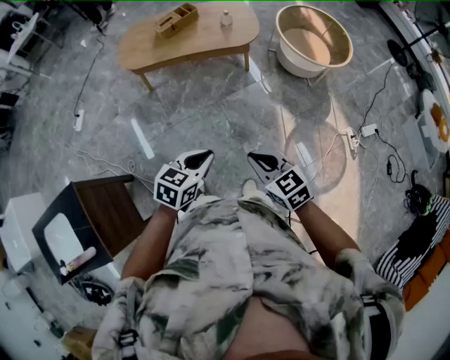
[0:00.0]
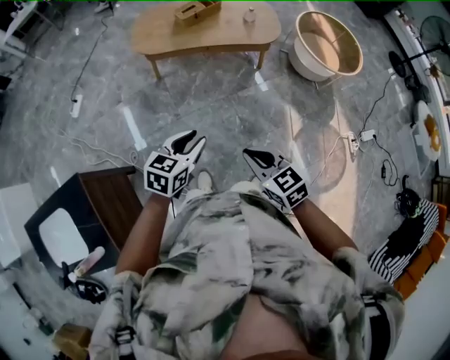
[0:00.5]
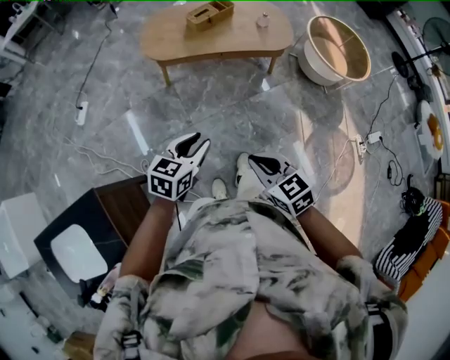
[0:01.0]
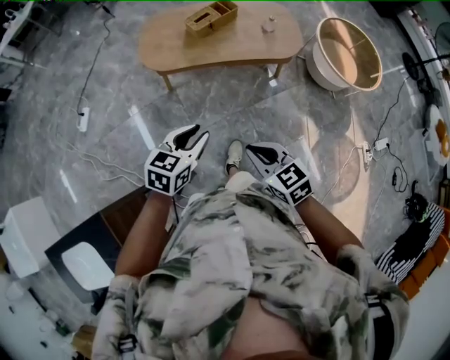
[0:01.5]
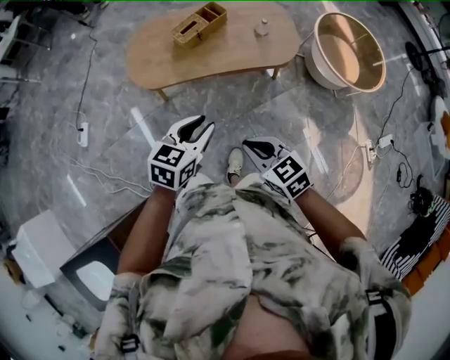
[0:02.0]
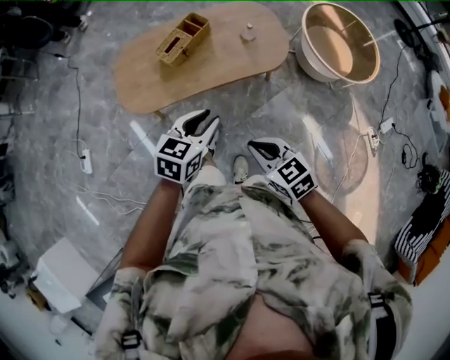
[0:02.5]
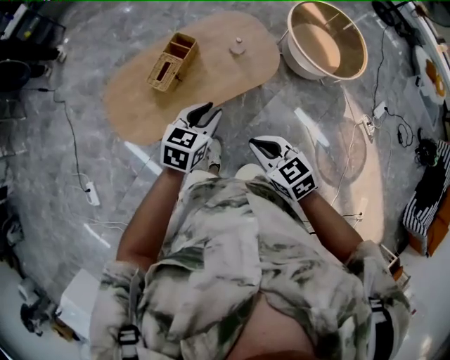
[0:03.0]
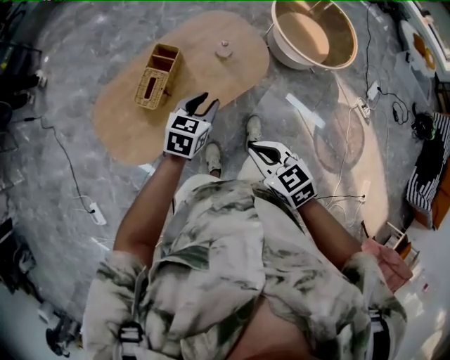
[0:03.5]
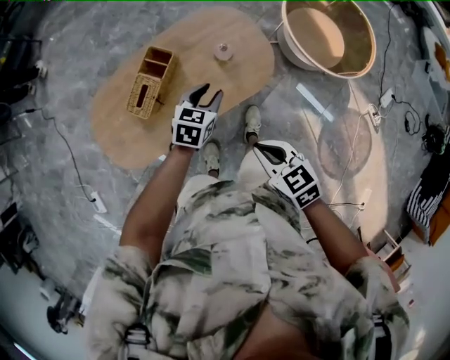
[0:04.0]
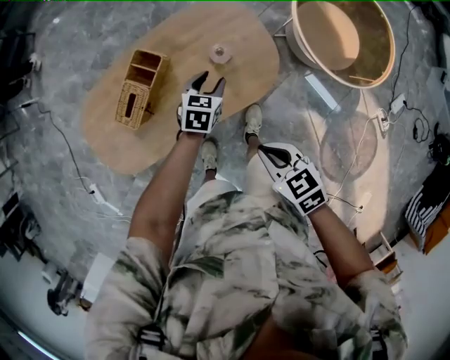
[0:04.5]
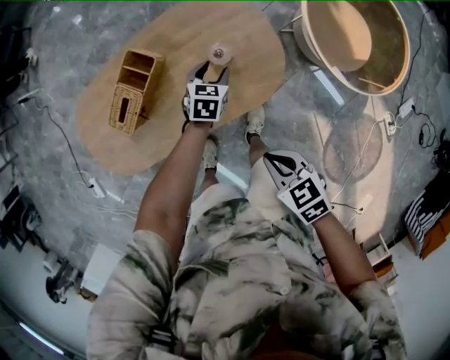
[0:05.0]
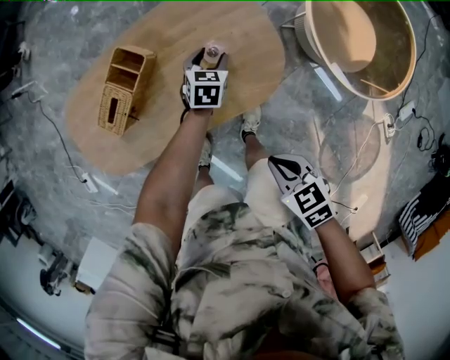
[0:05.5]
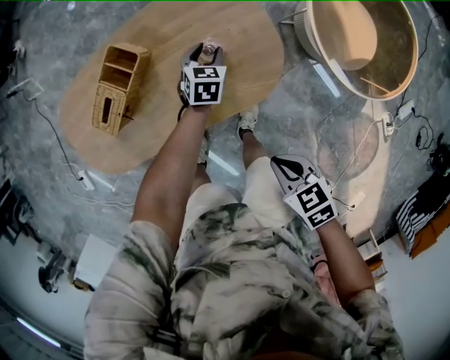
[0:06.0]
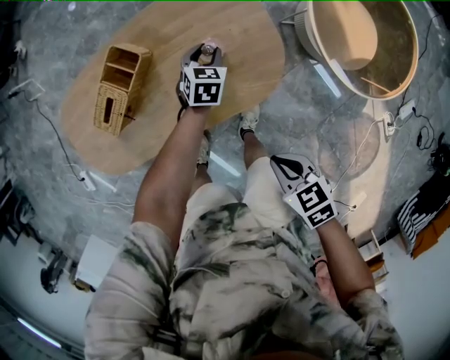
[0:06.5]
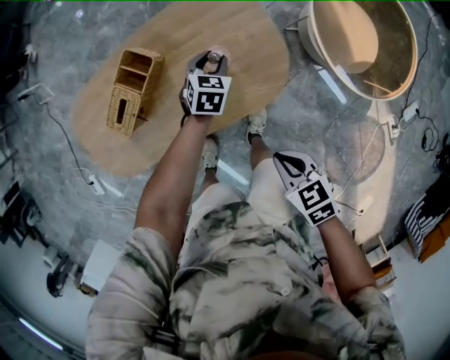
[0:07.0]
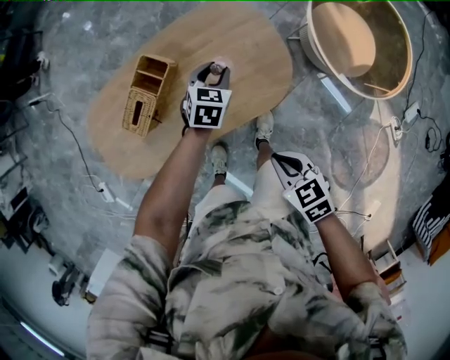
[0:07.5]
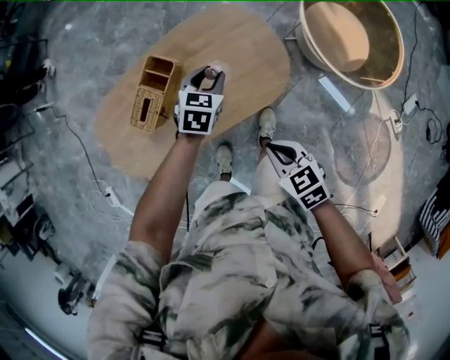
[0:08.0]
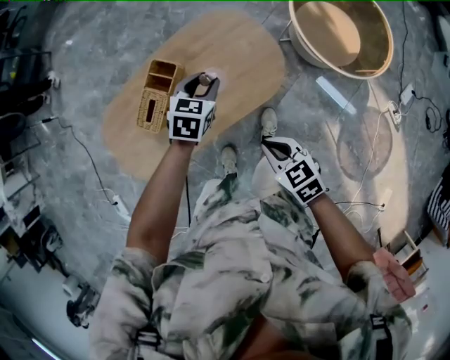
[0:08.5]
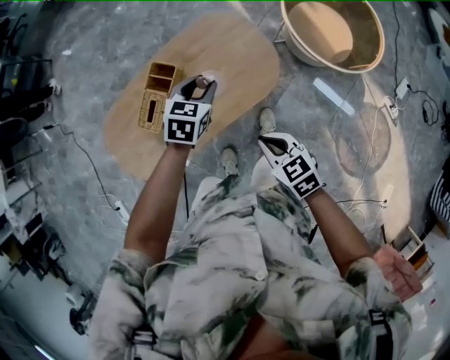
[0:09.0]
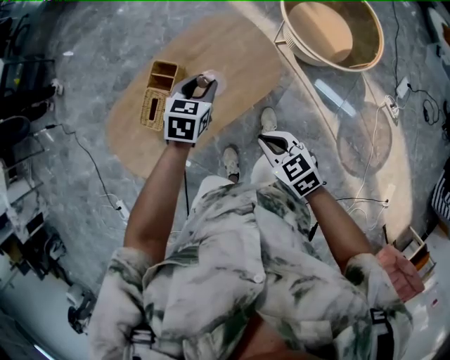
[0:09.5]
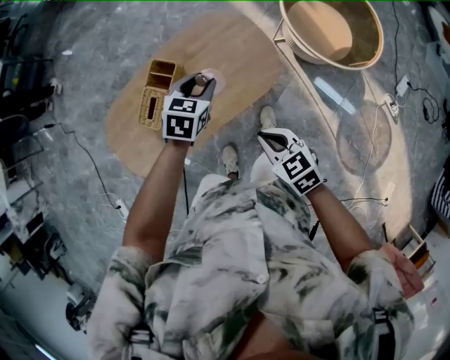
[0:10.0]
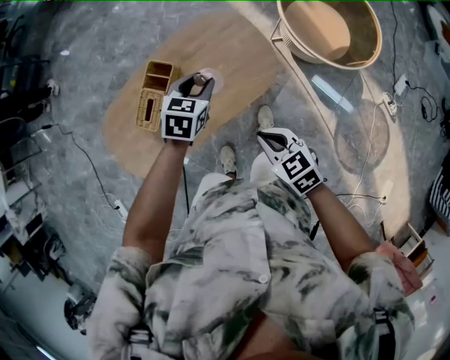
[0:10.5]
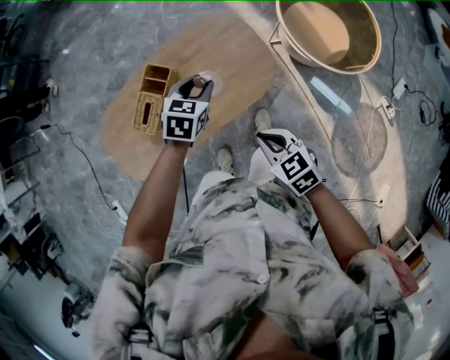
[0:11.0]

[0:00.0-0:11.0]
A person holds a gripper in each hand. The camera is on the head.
0:00.0 to 0:02.0: The two grippers travel together, forward and to the left, about 50 cm. The left gripper opens its fingers.
0:02.0 to 0:03.5: The right gripper moves roughly 25 cm, and rotates roughly 30 degrees. The left gripper changes place by some 40 cm, and changes its angle by roughly 20 degrees.
0:03.5 to 0:05.5: The left gripper ends up about 50 cm from where it was, changes its angle by about 30 degrees, and opens; the right gripper changes place by roughly 35 cm, and swivels approximately 20 degrees.
0:05.5 to 0:07.5: The left gripper travels upward by some 10 cm. Meanwhile the right gripper moves about 5 cm.
0:07.5 to 0:09.0: The left gripper heads upward and backward, covering roughly 20 cm, while the right gripper is displaced upward, to the left and backward by about 10 cm.
0:09.0 to 0:11.0: The grippers make only small movements.

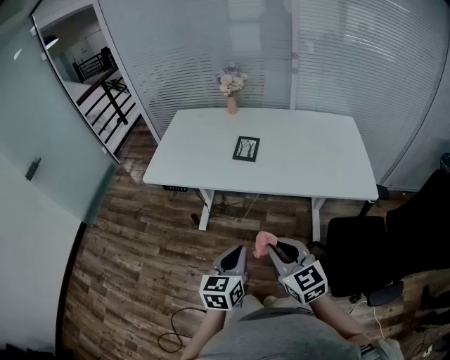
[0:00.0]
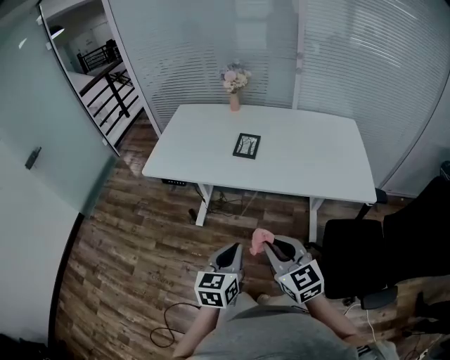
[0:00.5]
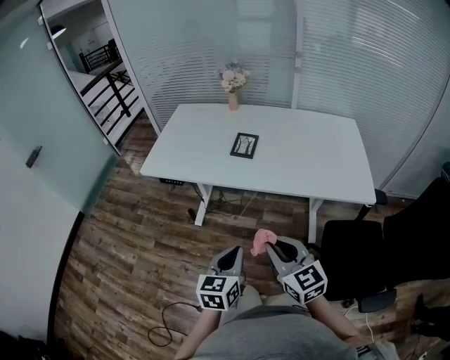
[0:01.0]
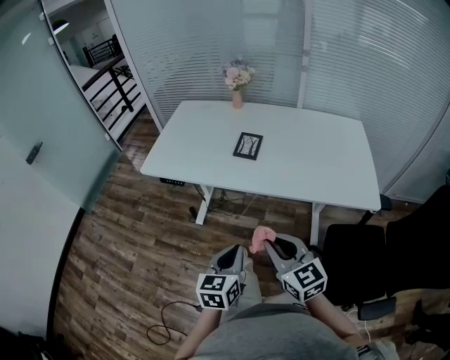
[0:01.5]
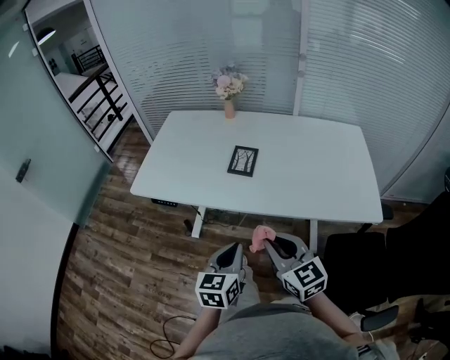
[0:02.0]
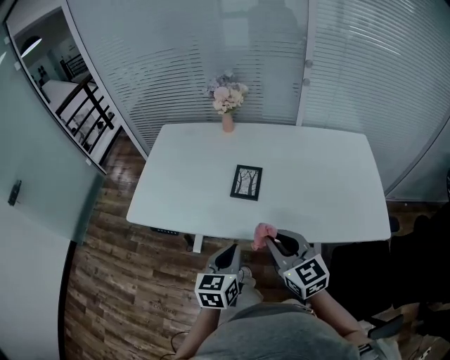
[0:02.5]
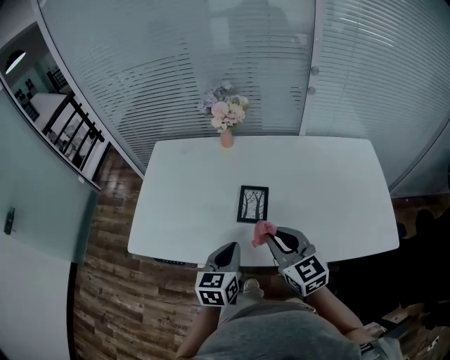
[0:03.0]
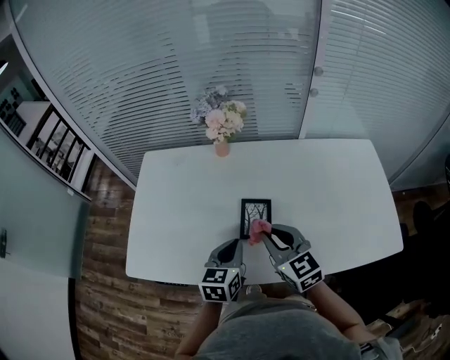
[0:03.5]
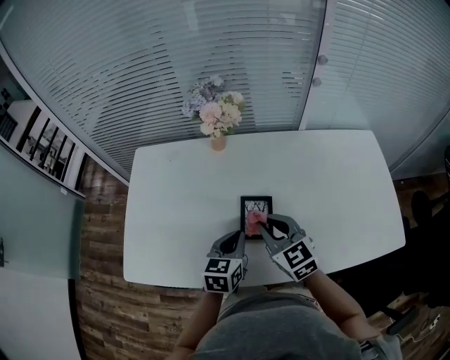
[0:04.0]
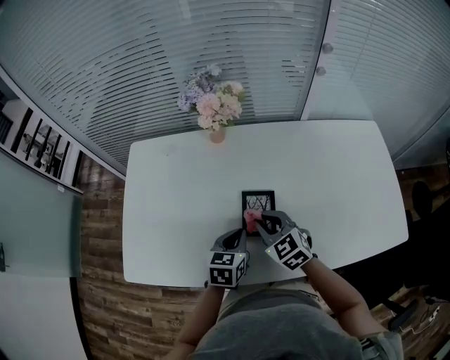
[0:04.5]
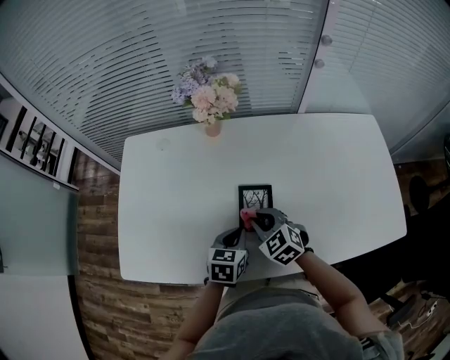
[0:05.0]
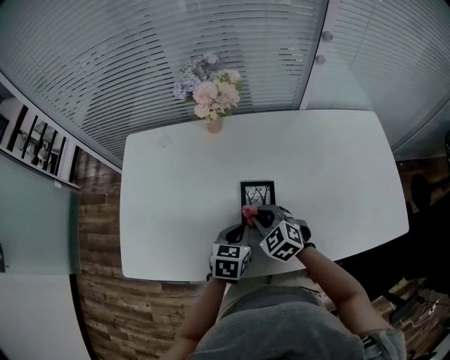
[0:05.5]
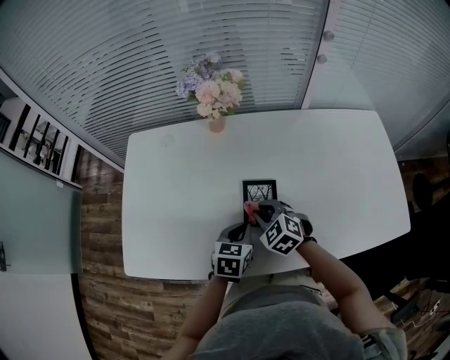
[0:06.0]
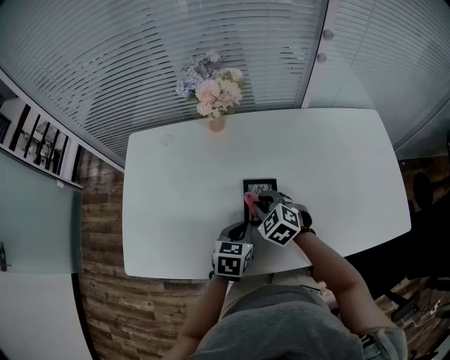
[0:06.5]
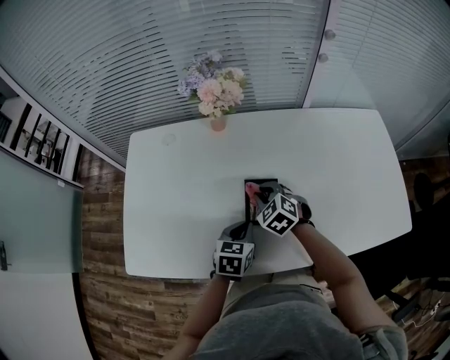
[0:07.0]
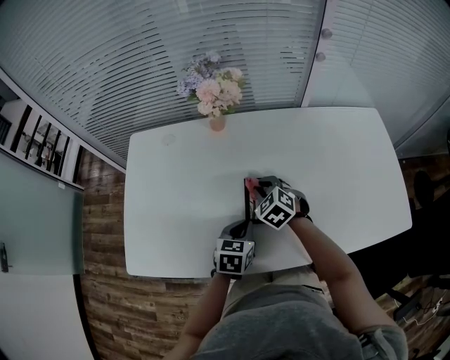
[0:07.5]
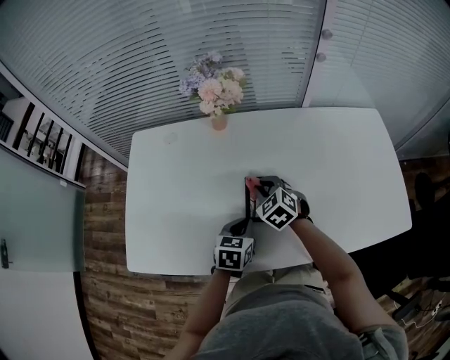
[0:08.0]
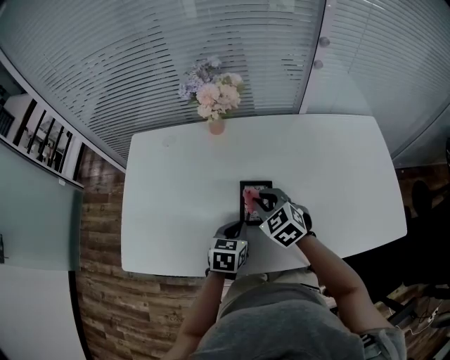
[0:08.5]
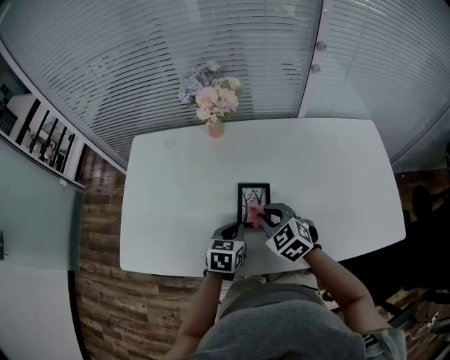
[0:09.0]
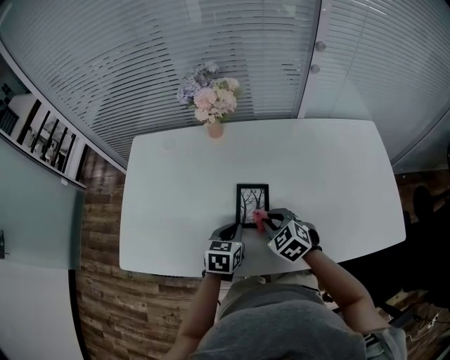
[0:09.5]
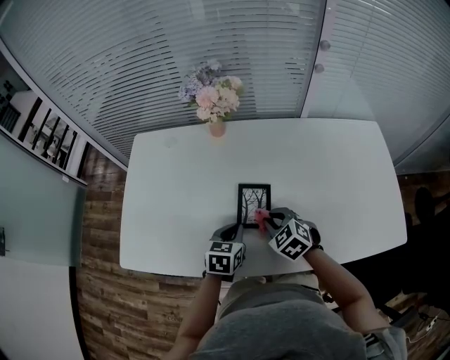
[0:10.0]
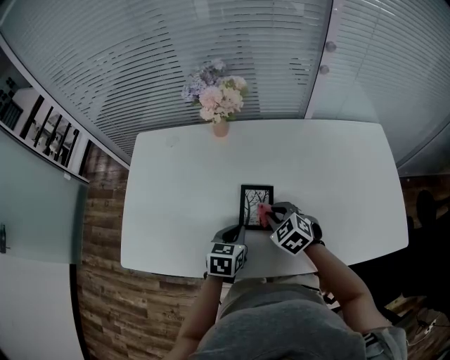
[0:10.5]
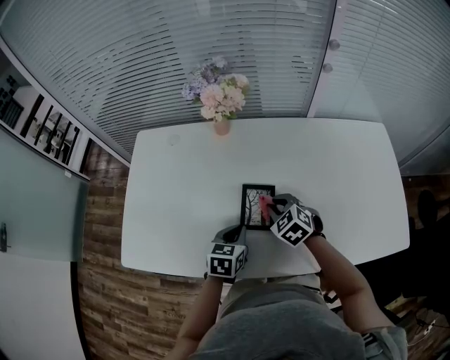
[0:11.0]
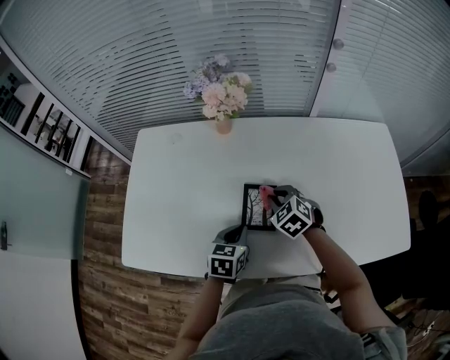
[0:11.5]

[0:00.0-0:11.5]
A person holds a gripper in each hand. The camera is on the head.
0:00.0 to 0:02.0: Both grippers travel together forward, approximately 10 cm.
0:02.0 to 0:04.0: The grippers both shift forward by some 35 cm.
0:04.0 to 0:06.0: The left gripper goes some 5 cm downward. The right gripper travels downward by roughly 15 cm, and turns by approximately 30 degrees.
0:06.0 to 0:07.5: The right gripper shifts roughly 5 cm forward.
0:07.5 to 0:09.5: The right gripper is displaced backward by about 10 cm.
0:09.5 to 0:11.5: The right gripper shifts approximately 10 cm forward.

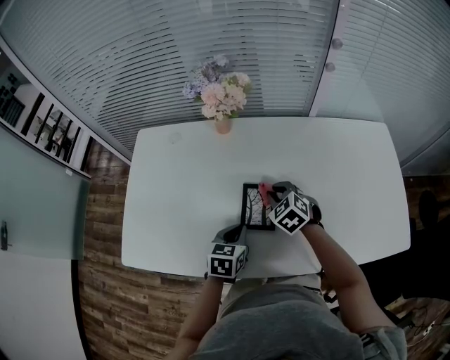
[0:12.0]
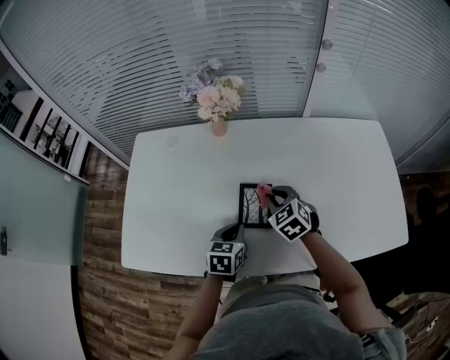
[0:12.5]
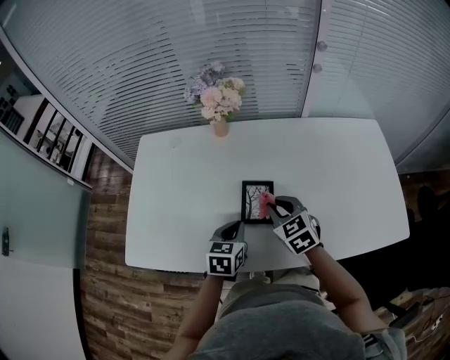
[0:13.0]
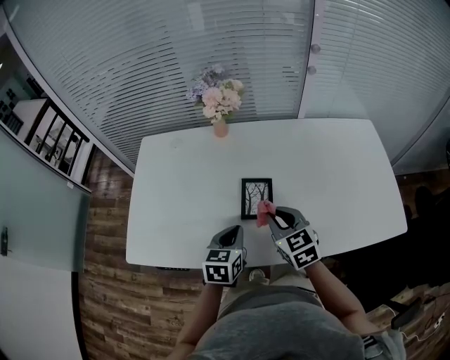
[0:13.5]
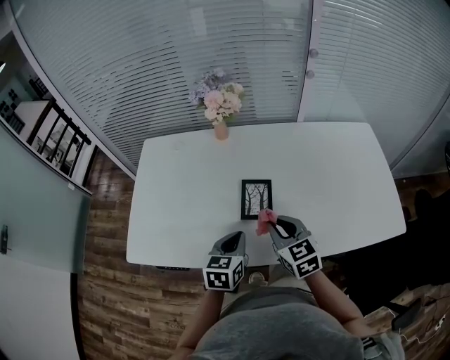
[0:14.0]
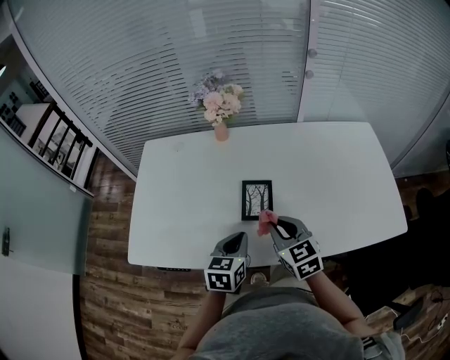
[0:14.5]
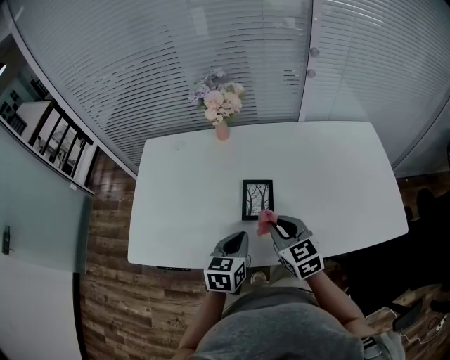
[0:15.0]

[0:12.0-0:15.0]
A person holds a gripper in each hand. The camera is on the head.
0:12.0 to 0:13.5: The left gripper heads upward, covering some 5 cm, while the right gripper moves backward and upward, about 15 cm, and changes its angle by about 30 degrees.
0:13.5 to 0:15.0: The grippers move only a little.

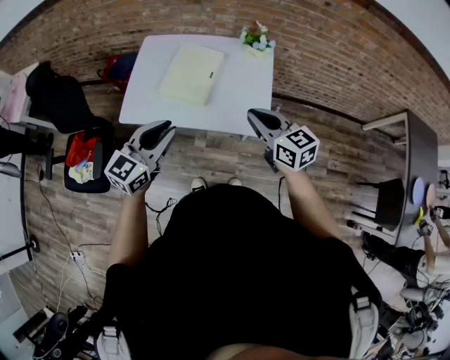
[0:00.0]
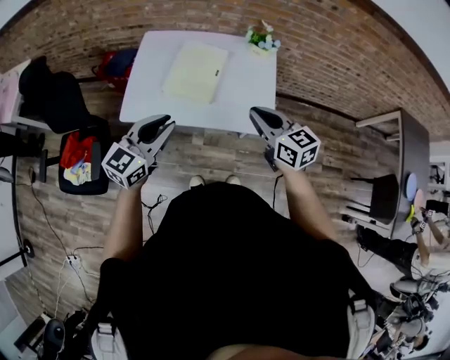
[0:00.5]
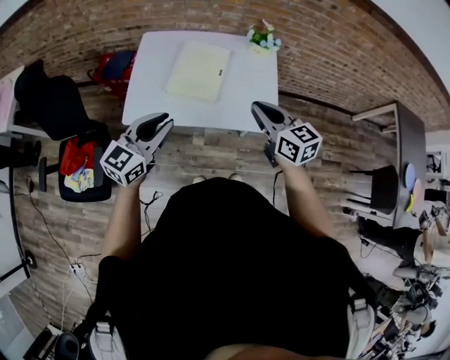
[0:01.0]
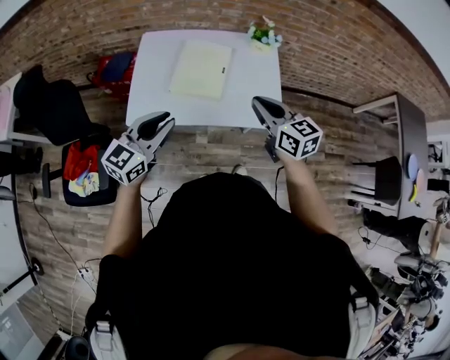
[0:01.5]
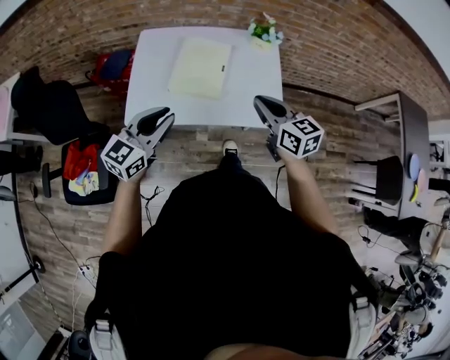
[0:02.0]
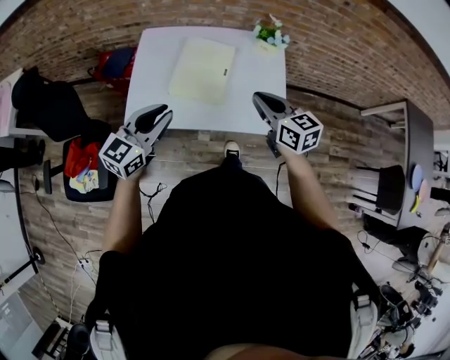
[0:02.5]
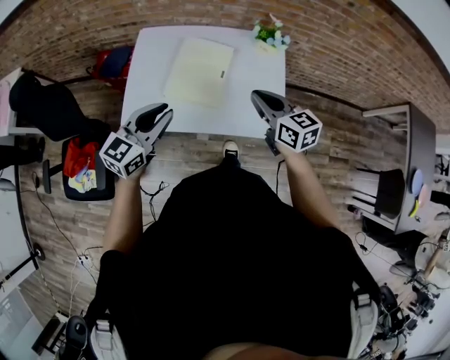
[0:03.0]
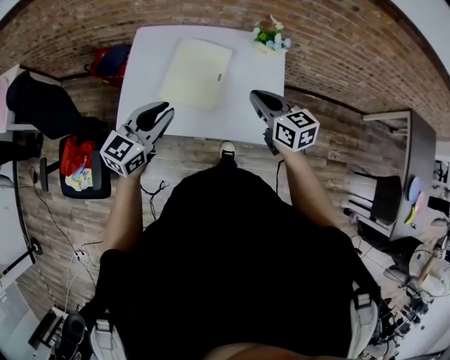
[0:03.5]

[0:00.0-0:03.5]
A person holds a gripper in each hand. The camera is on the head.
0:00.0 to 0:02.0: The right gripper heads to the left, covering some 10 cm, while the left gripper shifts some 15 cm to the left and forward.
0:02.0 to 0:03.5: The grippers both shift forward by about 10 cm.
